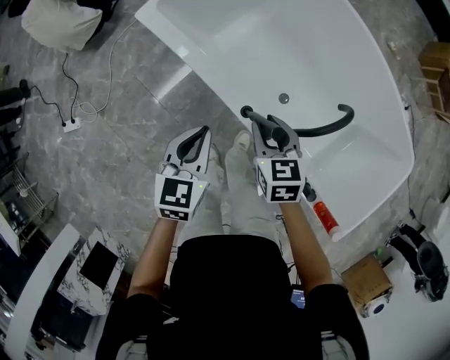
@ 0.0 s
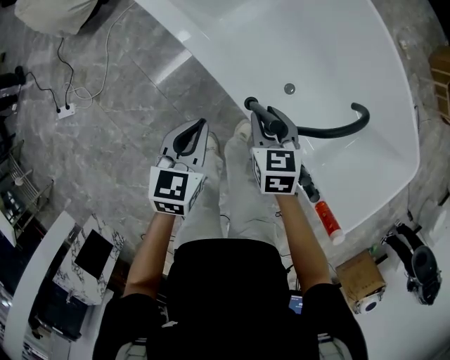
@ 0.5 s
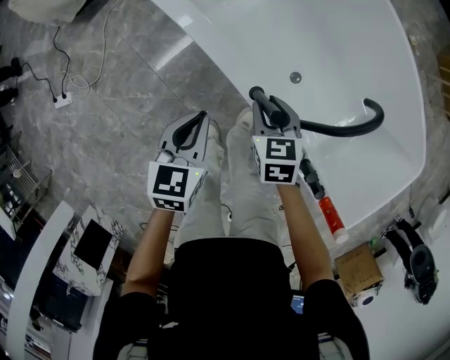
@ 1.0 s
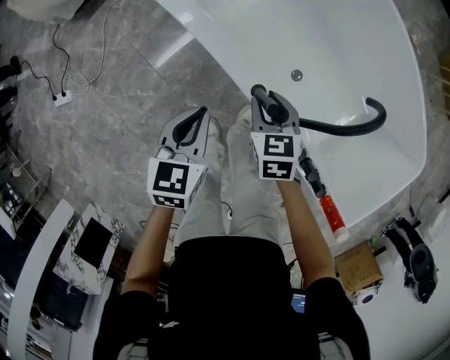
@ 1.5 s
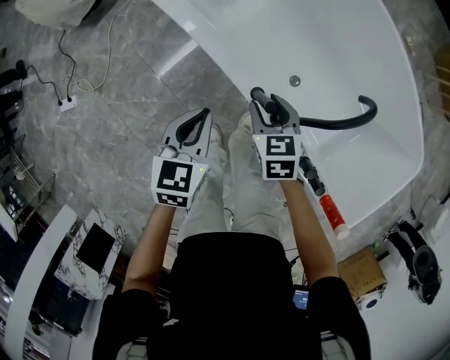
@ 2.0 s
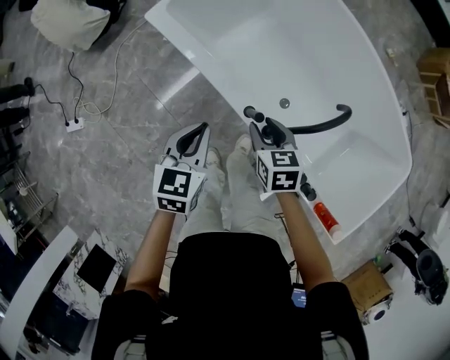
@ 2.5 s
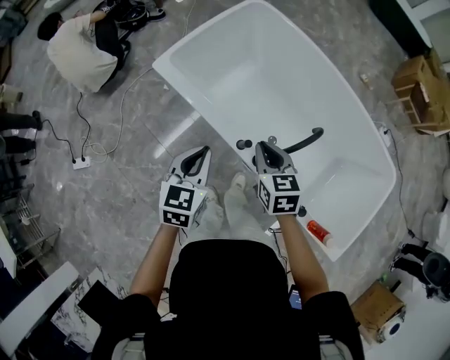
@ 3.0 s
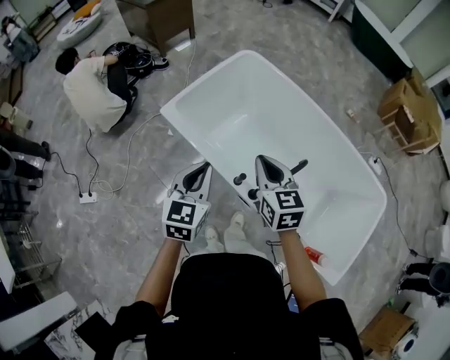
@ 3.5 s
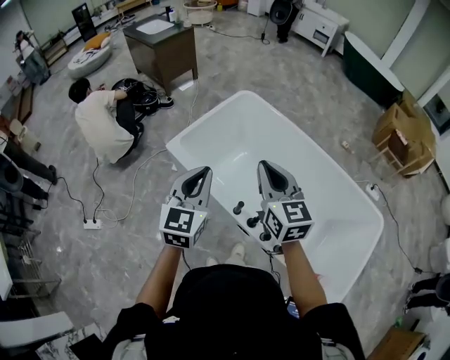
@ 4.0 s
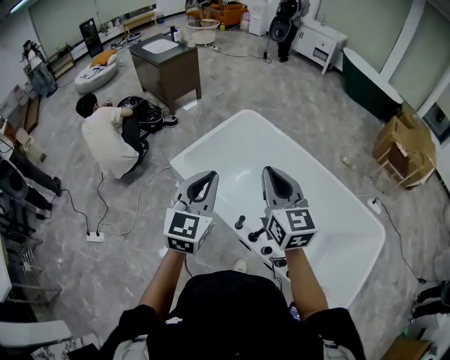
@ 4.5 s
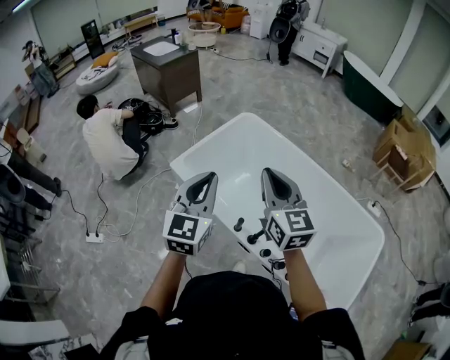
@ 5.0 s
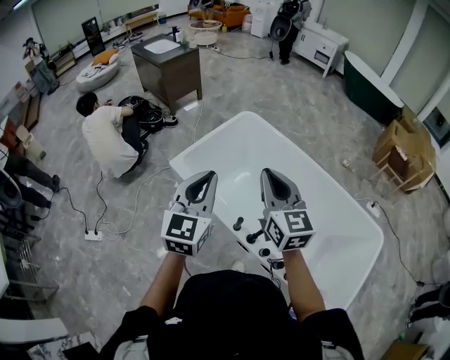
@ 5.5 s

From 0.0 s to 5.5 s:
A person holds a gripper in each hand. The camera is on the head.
From 0.0 s to 2.0 s: Both grippers move downward, roughly 5 cm.
From 2.0 s to 3.5 s: The two grippers go roughly 35 cm upward. The right gripper turns by some 30 degrees, and closes, while the left gripper swivels about 20 degrees.
From 3.5 s to 5.5 s: The grippers both shift upward by about 15 cm. The right gripper changes its angle by about 20 degrees.

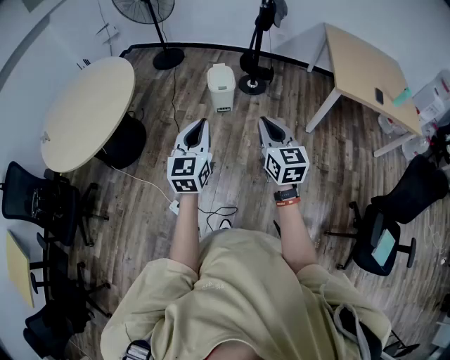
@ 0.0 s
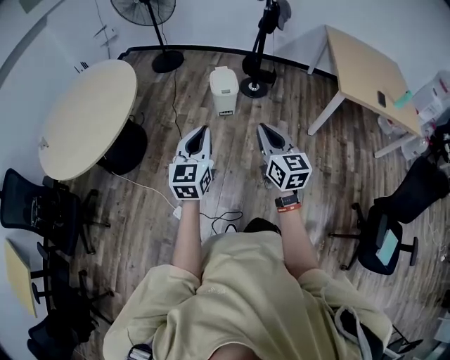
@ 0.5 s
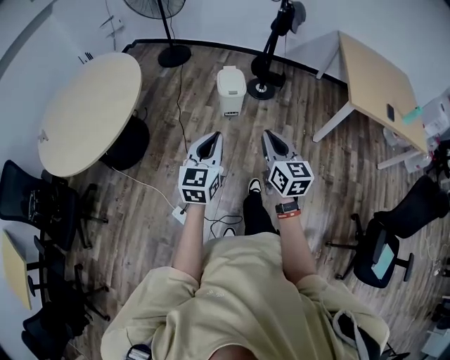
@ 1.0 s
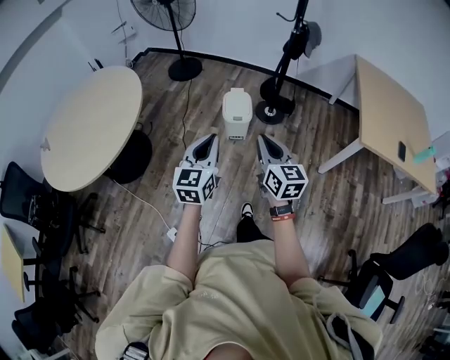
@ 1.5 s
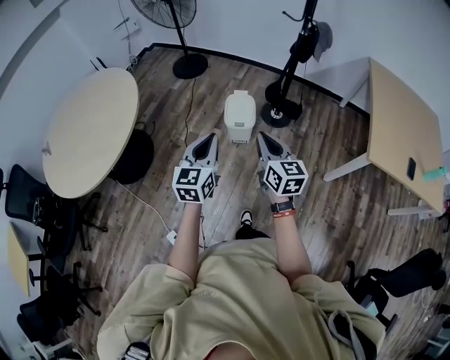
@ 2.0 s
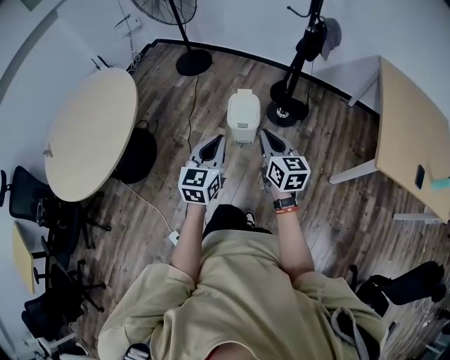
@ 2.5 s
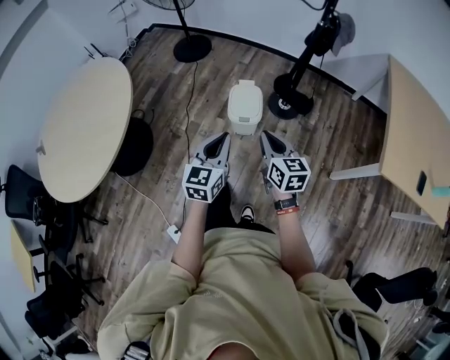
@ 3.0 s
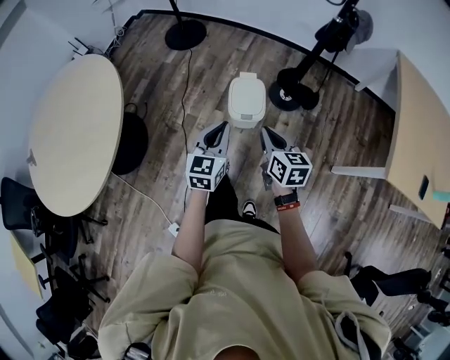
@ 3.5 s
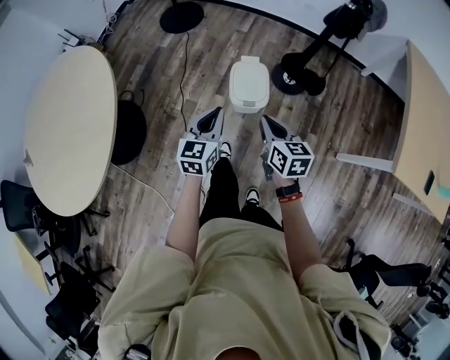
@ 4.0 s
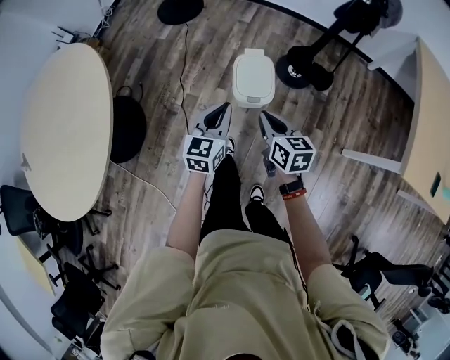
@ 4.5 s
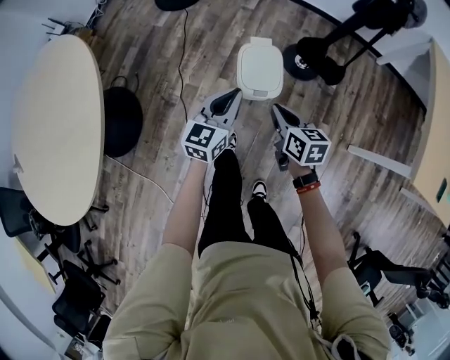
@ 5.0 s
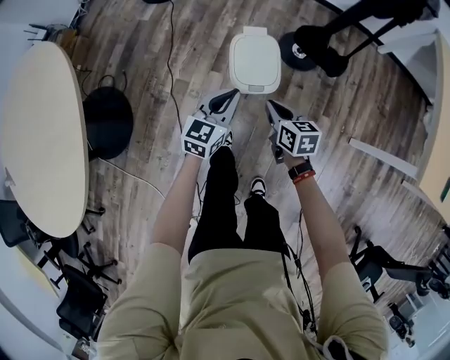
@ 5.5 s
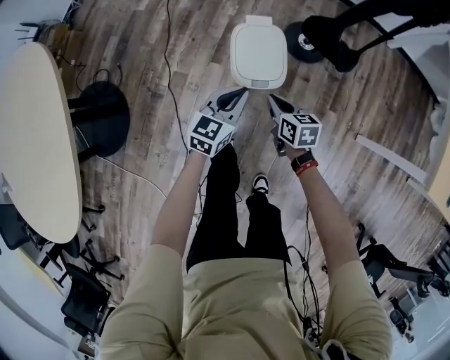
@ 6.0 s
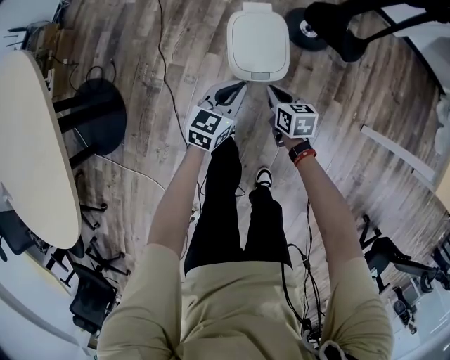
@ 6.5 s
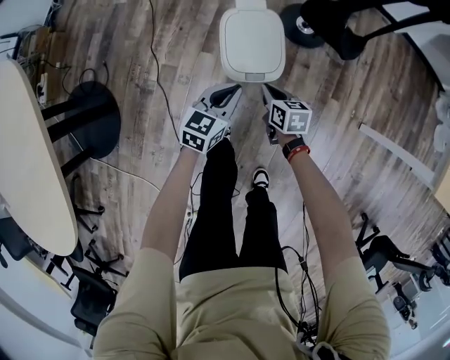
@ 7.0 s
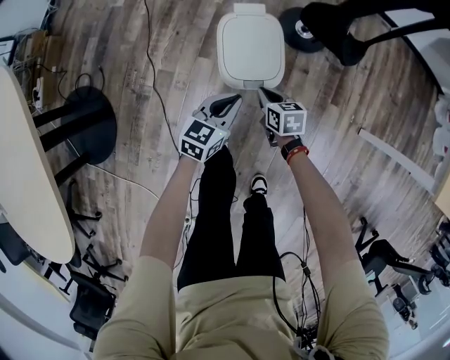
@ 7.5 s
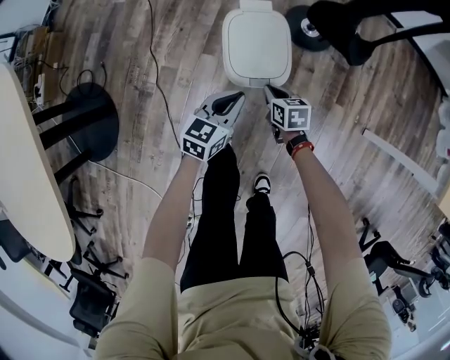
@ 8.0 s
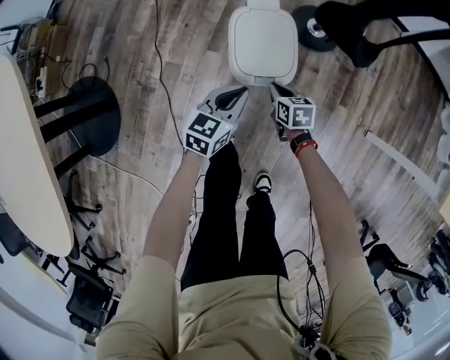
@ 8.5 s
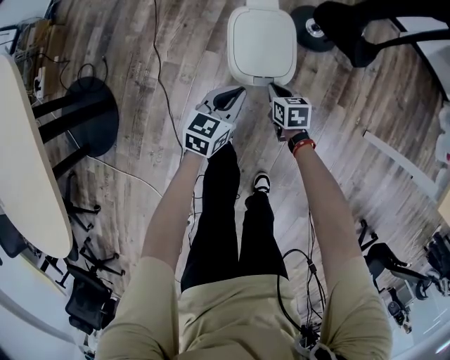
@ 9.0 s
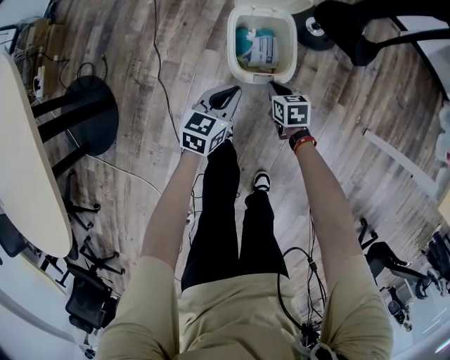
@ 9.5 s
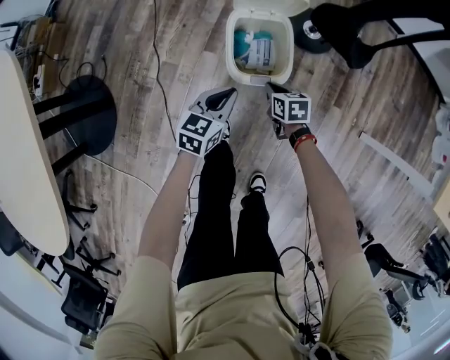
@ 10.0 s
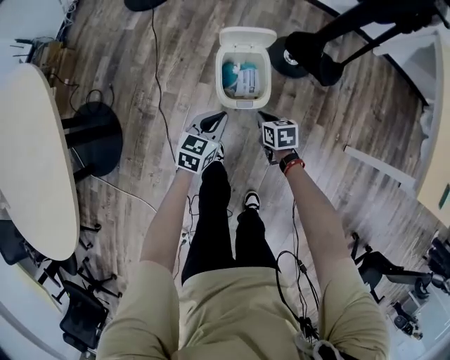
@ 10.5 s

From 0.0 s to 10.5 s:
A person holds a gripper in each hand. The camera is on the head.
From 0.0 s to 2.0 s: The pair of grippers is taken forward, about 40 cm.
From 2.0 s to 4.0 s: Both grippers travel together forward and downward, about 35 cm. The right gripper turns by about 20 degrees.
From 4.0 s to 6.5 s: Both grippers move downward, about 40 cm. The left gripper changes its angle by some 20 degrees.
From 6.5 s to 8.5 s: The left gripper is displaced downward by approximately 5 cm. Meanwhile the right gripper is displaced downward by approximately 10 cm.
From 8.5 s to 10.5 s: The two grippers go some 10 cm upward.

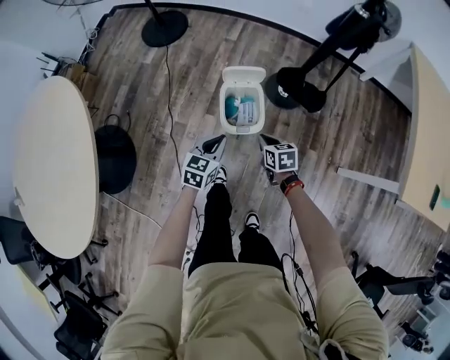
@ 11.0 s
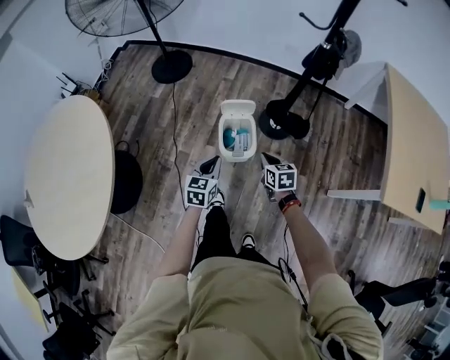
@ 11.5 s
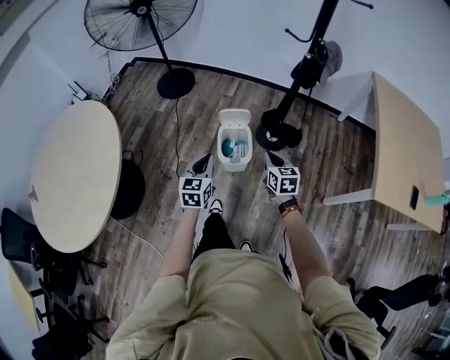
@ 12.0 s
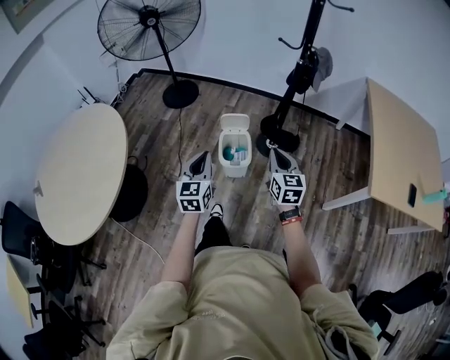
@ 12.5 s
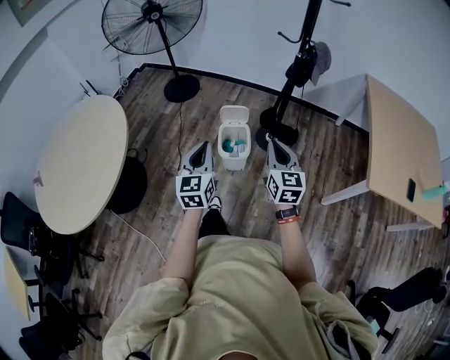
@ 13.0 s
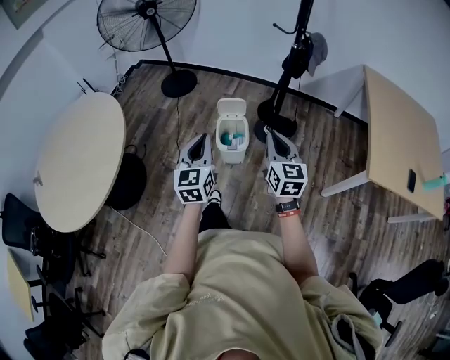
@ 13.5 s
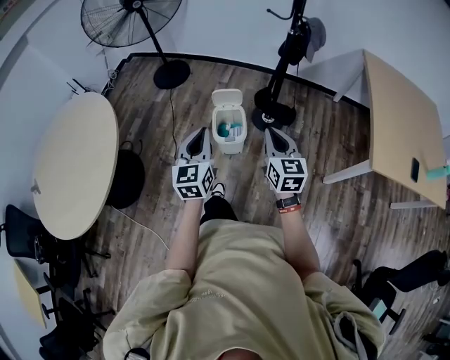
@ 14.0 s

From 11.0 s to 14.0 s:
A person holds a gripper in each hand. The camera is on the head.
From 11.0 s to 12.5 s: The grippers both shift upward and backward by about 40 cm. The left gripper rotates about 30 degrees. The right gripper angles its fingers upward, by some 30 degrees.

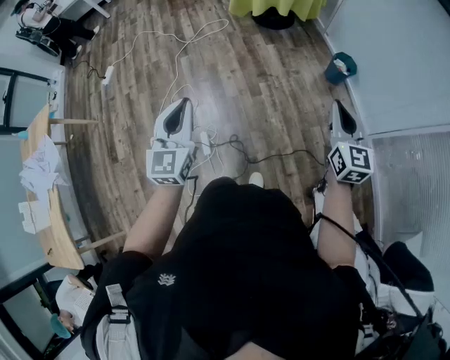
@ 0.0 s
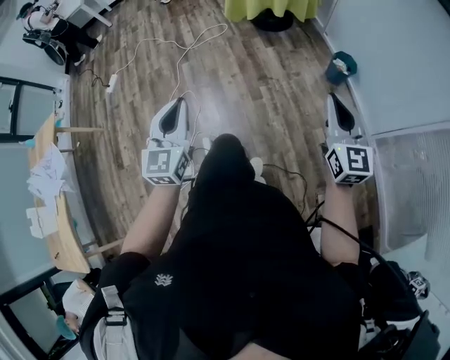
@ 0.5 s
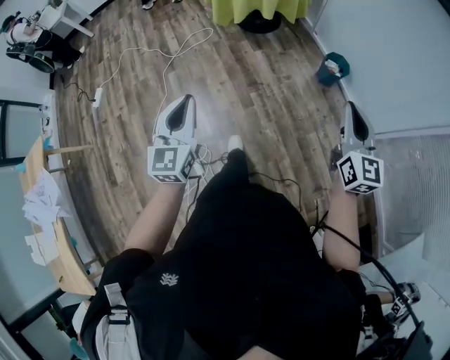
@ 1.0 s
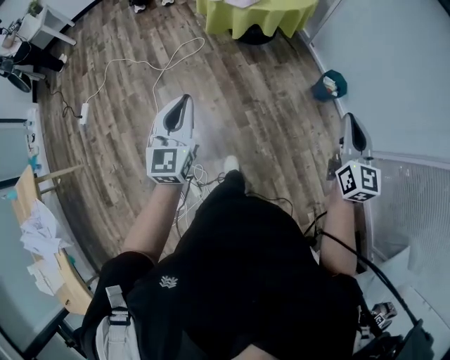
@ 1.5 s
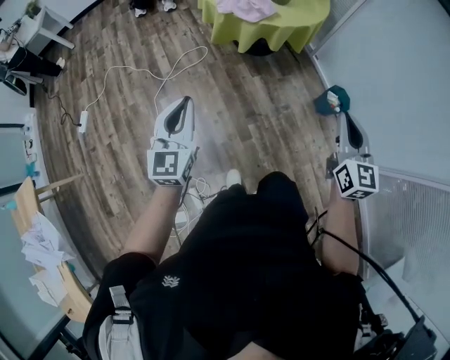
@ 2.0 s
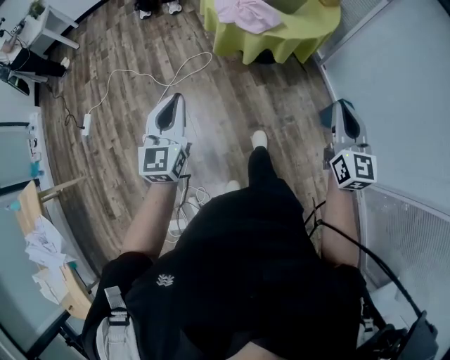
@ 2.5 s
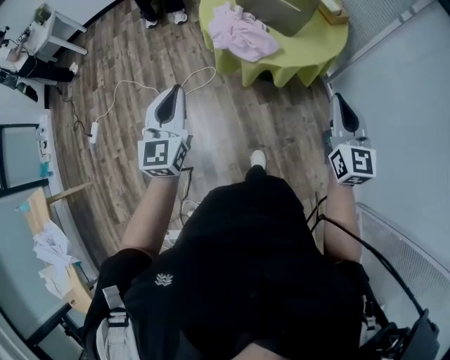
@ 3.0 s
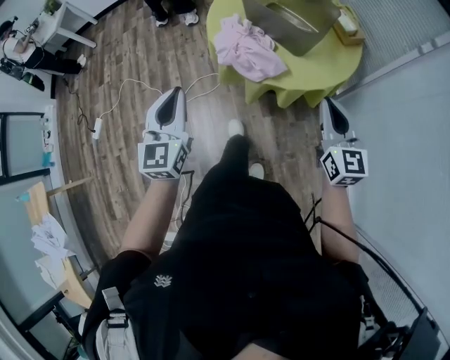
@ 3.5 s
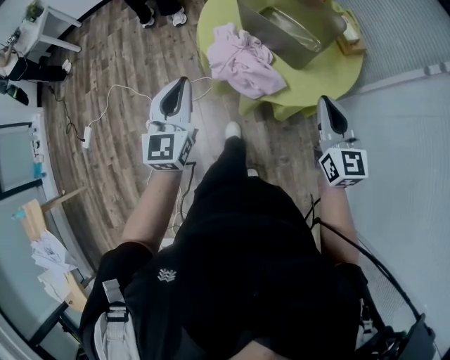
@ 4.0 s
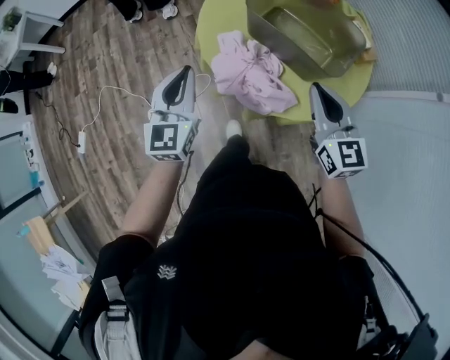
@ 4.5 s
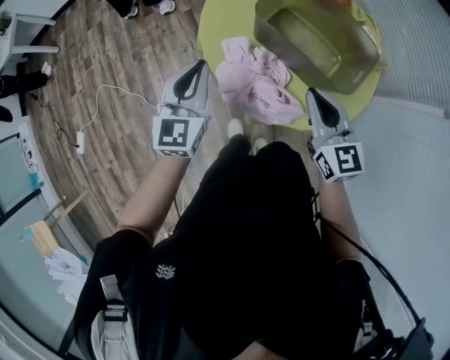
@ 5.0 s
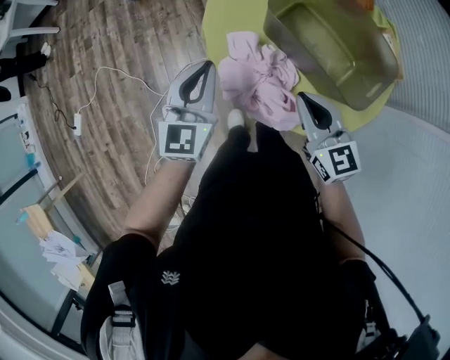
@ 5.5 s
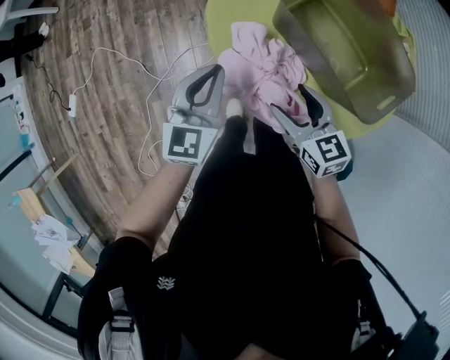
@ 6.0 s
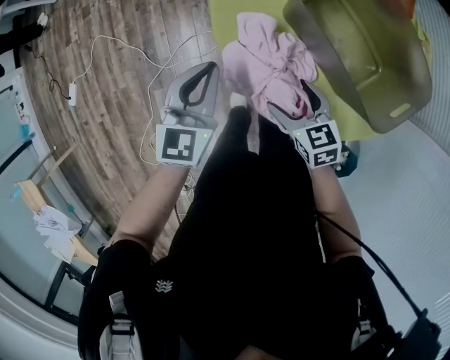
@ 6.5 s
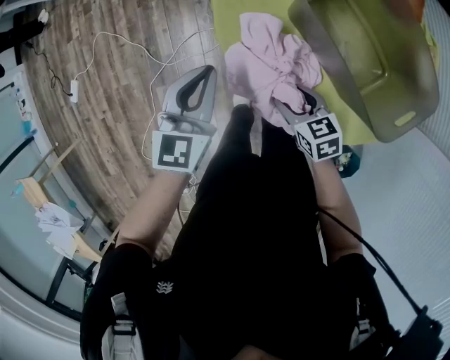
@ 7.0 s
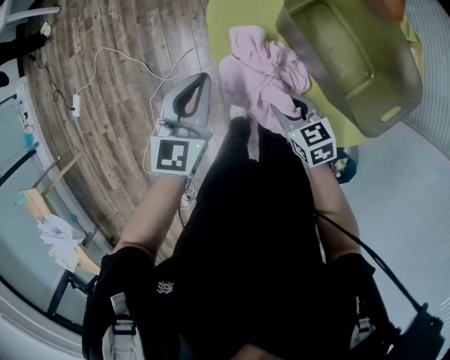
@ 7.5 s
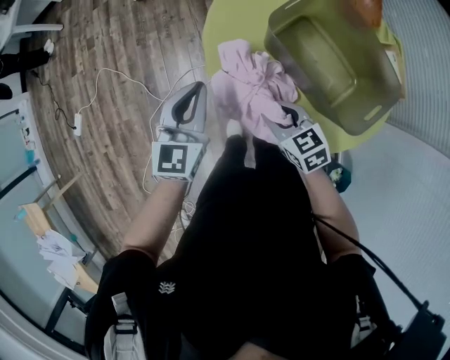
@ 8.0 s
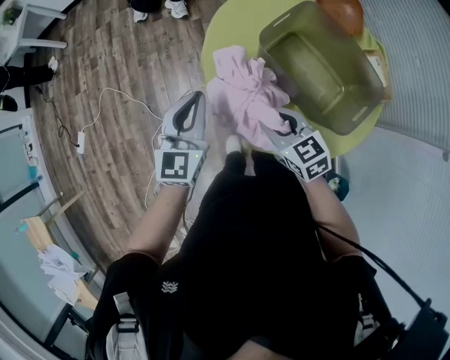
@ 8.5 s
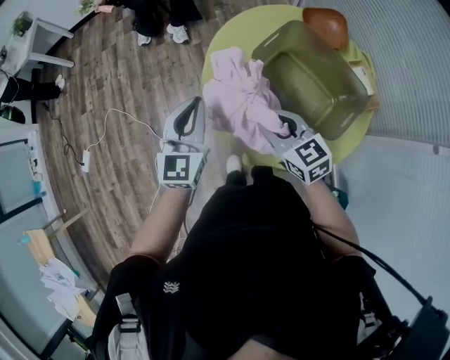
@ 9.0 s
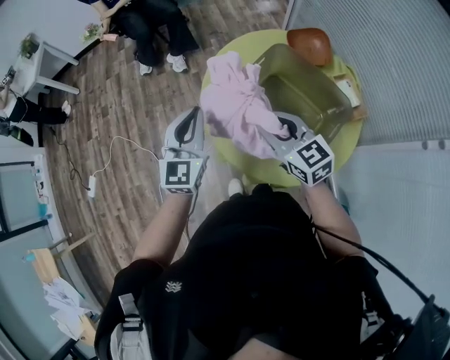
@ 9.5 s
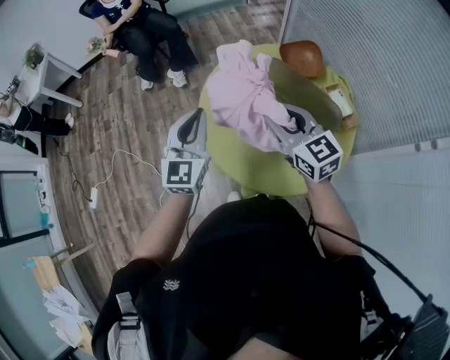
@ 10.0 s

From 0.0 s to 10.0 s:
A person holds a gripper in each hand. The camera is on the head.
From 0.0 s to 2.0 s: Both grippers are carried forward, approximately 50 cm.
From 2.0 s to 4.0 s: Both grippers are carried forward, about 60 cm.
From 4.0 s to 6.0 s: The right gripper travels forward, downward and to the left by roughly 35 cm, changes its angle by about 40 degrees, and opens up. Meanwhile the left gripper moves forward and downward, roughly 30 cm.
From 6.0 s to 8.0 s: The right gripper moves about 10 cm downward and comes back, and closes up.
From 8.0 s to 10.0 s: The left gripper shifts some 20 cm upward; the right gripper is displaced upward by some 30 cm, and swivels some 30 degrees.
